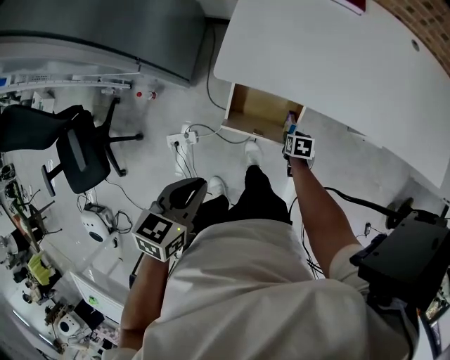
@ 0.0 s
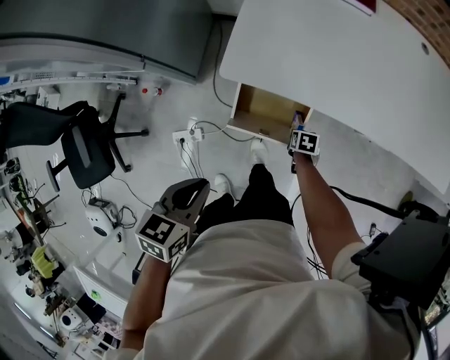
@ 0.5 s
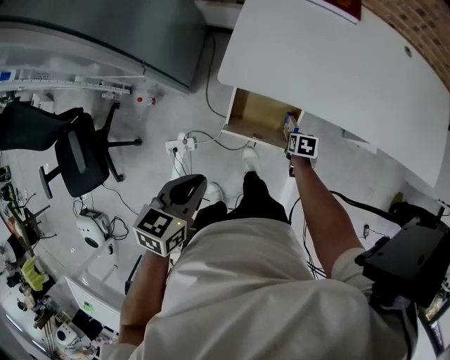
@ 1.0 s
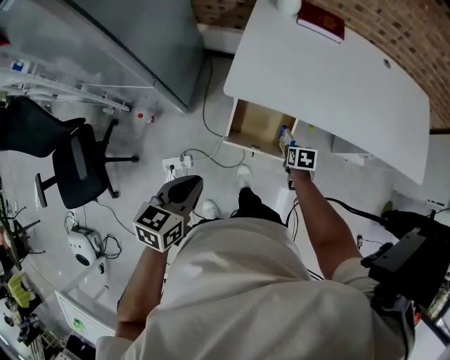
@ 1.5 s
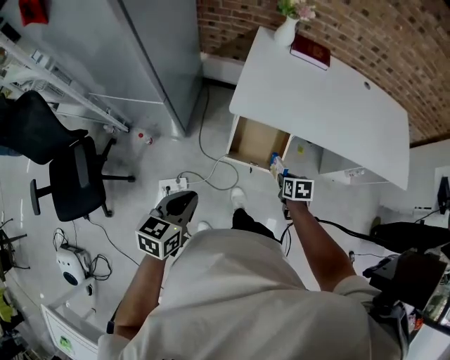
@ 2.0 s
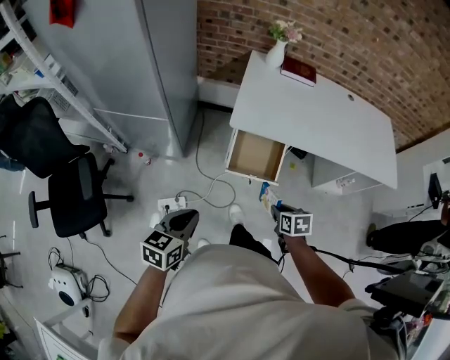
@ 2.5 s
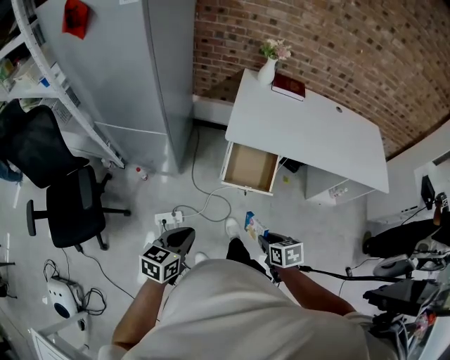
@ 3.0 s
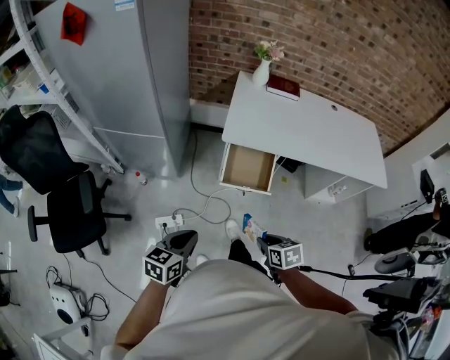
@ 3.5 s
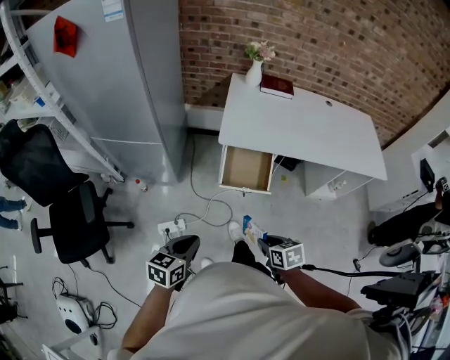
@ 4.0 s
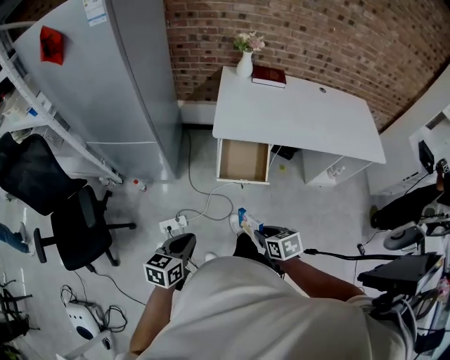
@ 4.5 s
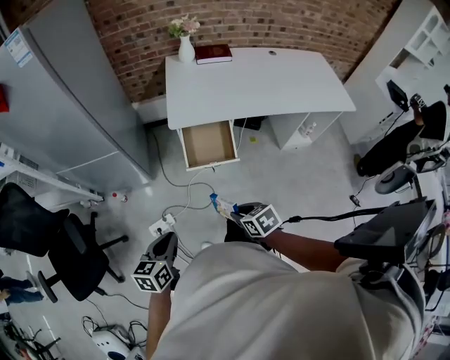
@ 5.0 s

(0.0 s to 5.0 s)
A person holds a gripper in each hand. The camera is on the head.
0.0 s - 2.5 s: The right gripper is displaced upward and backward by some 40 cm. Meanwhile the left gripper travels backward and to the left by about 25 cm.
2.5 s - 5.0 s: The left gripper moves backward, about 10 cm. The right gripper goes approximately 15 cm backward and to the left.

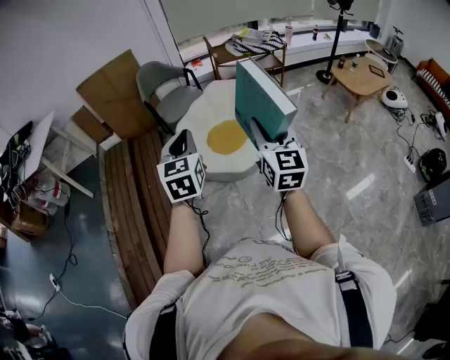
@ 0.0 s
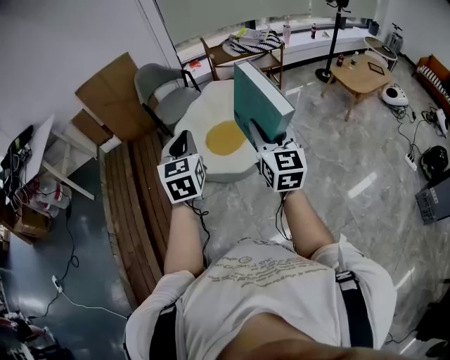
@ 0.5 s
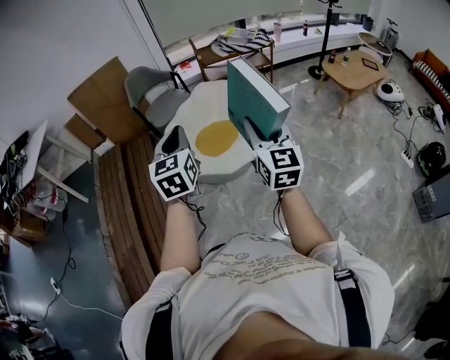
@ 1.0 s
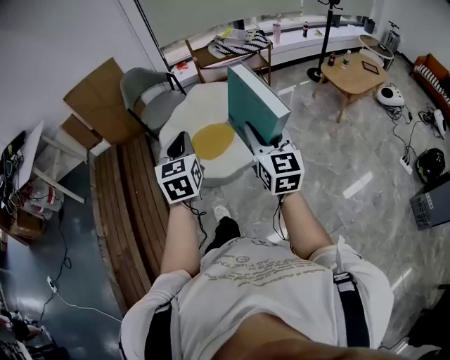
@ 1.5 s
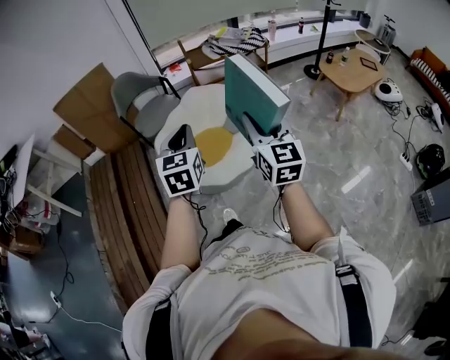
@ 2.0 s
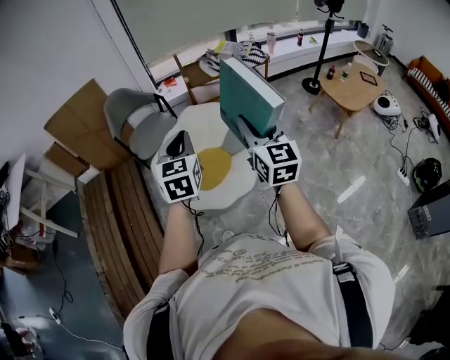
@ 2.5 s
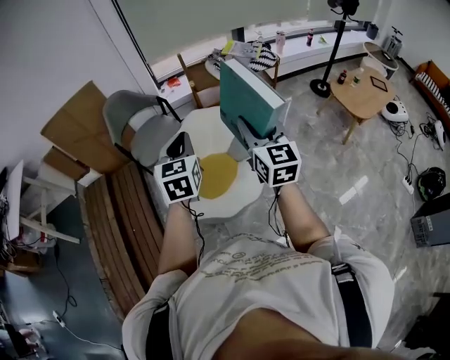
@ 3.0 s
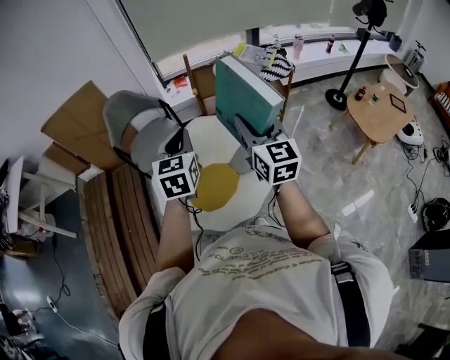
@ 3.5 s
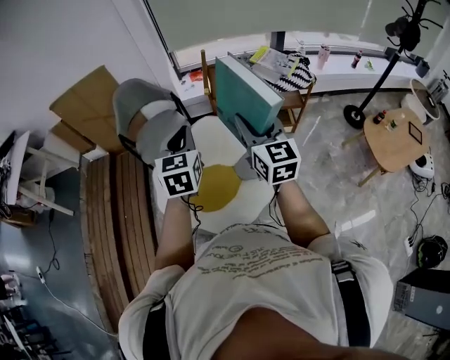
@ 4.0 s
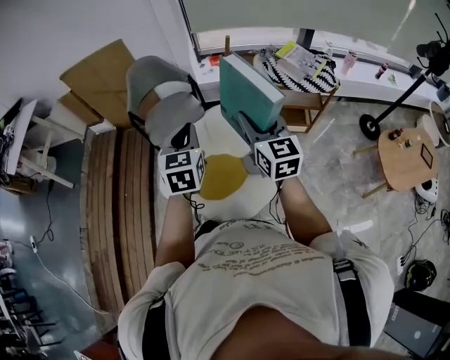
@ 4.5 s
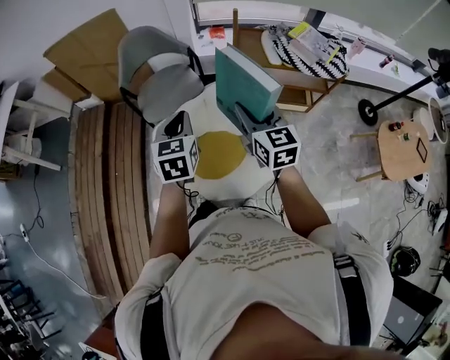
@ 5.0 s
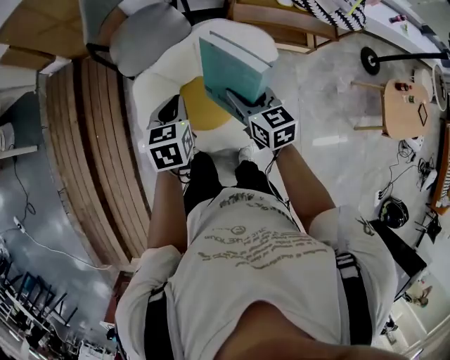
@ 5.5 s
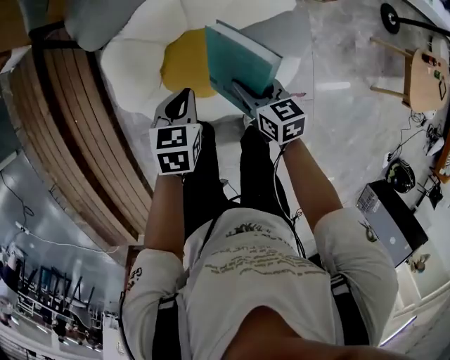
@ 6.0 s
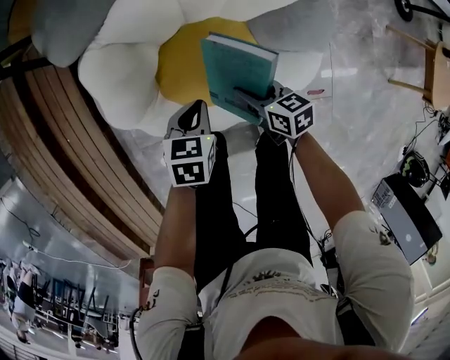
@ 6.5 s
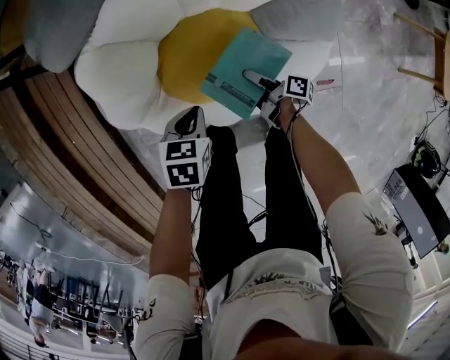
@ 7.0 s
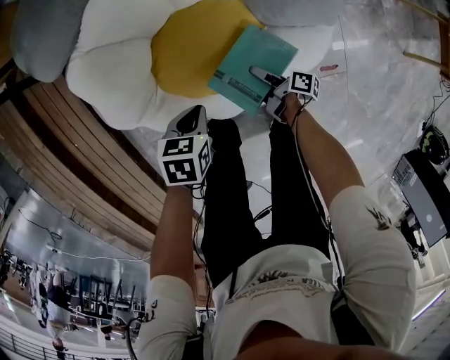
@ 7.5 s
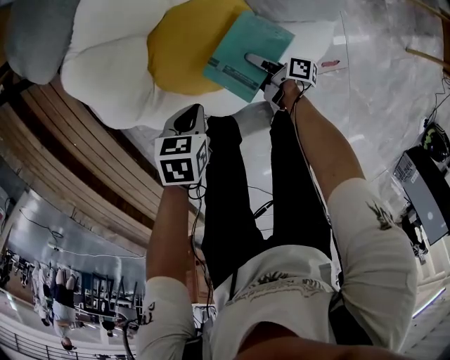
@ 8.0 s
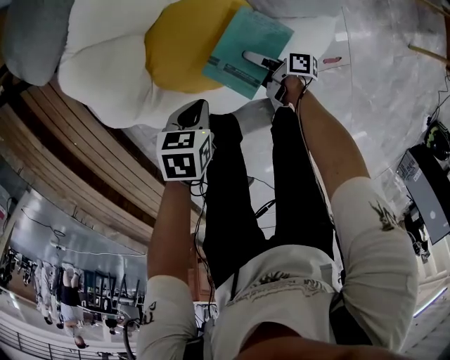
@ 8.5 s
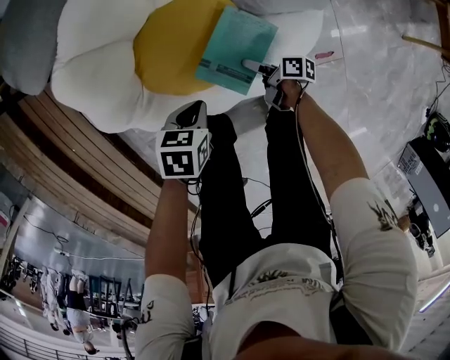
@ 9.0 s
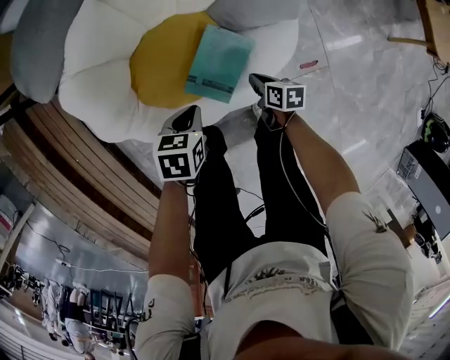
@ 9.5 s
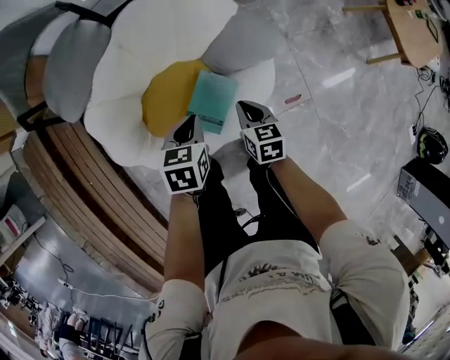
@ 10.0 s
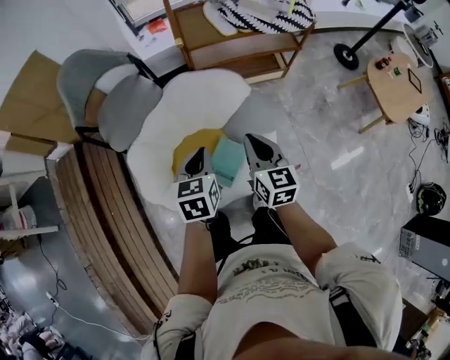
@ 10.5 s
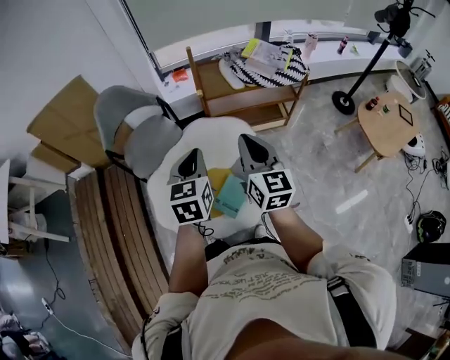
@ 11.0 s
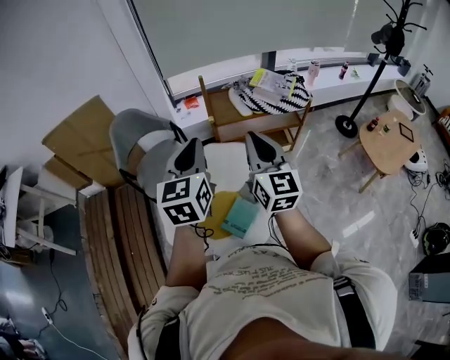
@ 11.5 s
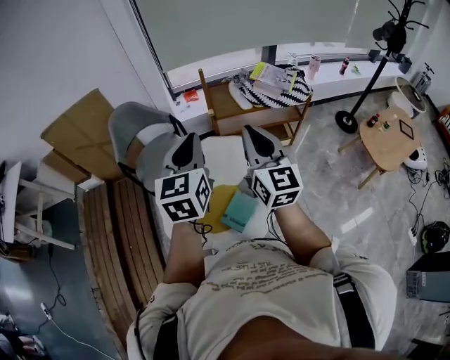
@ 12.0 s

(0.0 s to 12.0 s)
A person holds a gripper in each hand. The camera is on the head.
0.0 s - 2.0 s: The right gripper moves forward and to the right, roughly 15 cm. The left gripper moves to the right and forward, approximately 20 cm.
2.0 s - 4.0 s: The two grippers travel together, forward, about 40 cm.
4.0 s - 6.0 s: Both grippers move downward, roughly 50 cm. The right gripper angles its fingers downward, by about 40 degrees; the left gripper angles its fingers downward, by approximately 30 degrees.
6.0 s - 8.0 s: The right gripper travels downward by roughly 35 cm, and rolls clockwise, seen from behind, by approximately 70 degrees; the left gripper shifts some 20 cm downward, and changes its angle by some 20 degrees.
8.0 s - 10.0 s: The grippers both shift upward by roughly 20 cm. The right gripper rolls counterclockwise, seen from behind, by roughly 60 degrees, and closes its fingers.
10.0 s - 12.0 s: Both grippers move upward, some 60 cm. The right gripper tilts its fingers approximately 50 degrees upward; the left gripper tips its fingers upward by some 40 degrees.

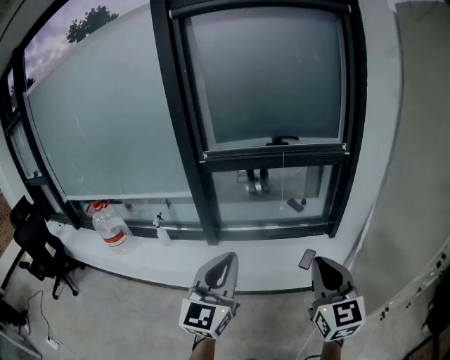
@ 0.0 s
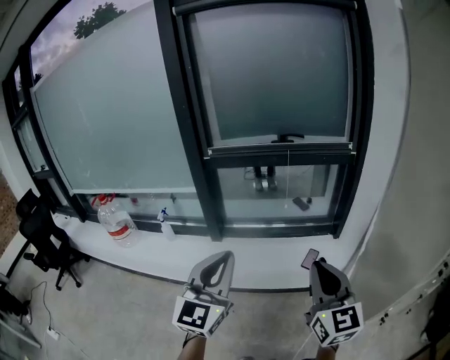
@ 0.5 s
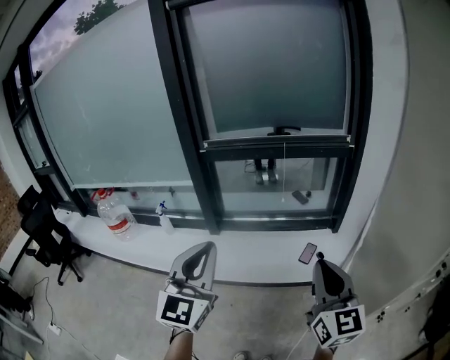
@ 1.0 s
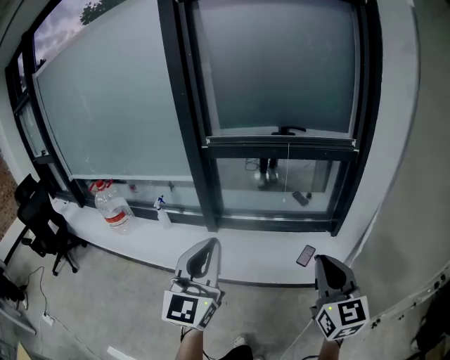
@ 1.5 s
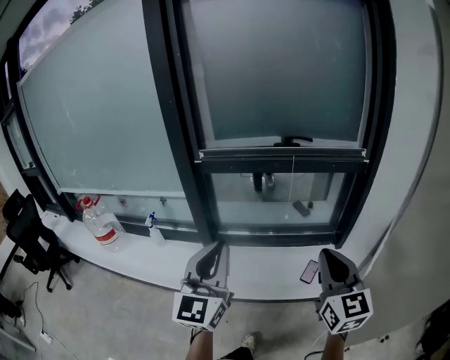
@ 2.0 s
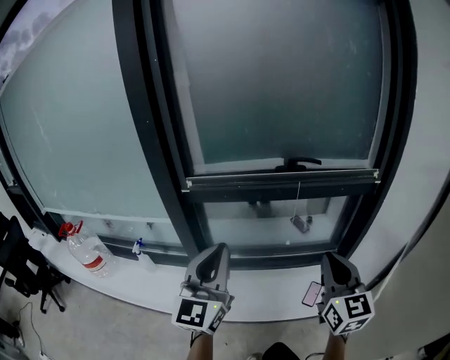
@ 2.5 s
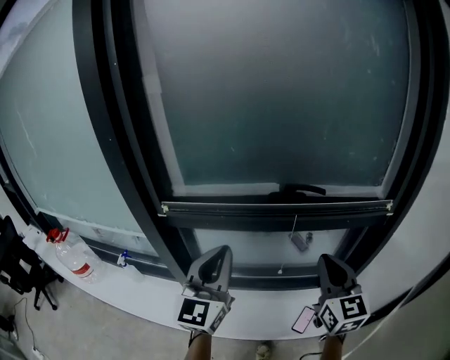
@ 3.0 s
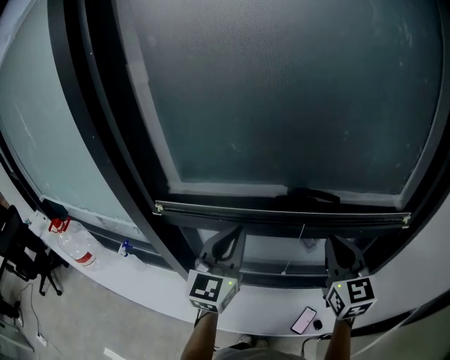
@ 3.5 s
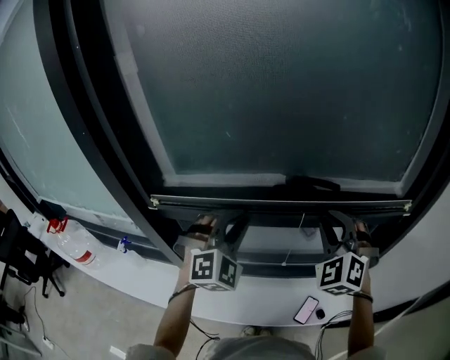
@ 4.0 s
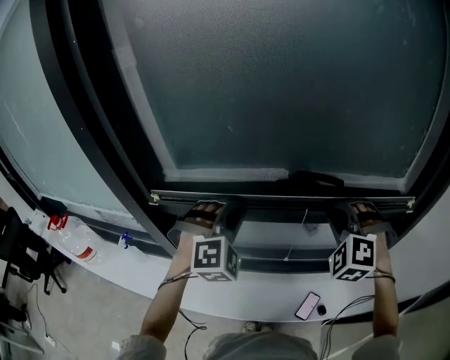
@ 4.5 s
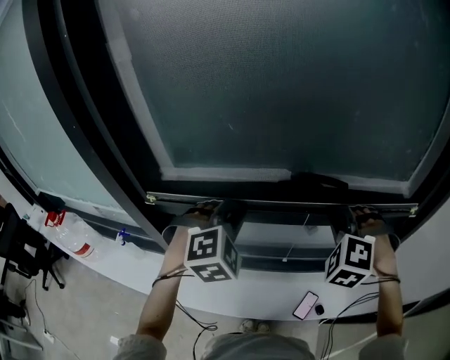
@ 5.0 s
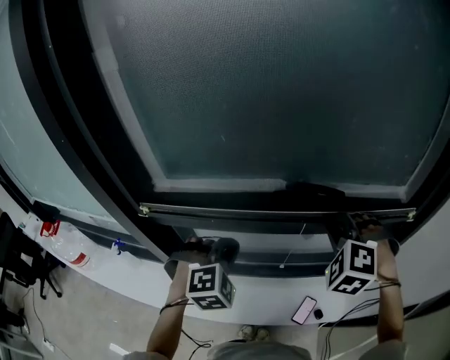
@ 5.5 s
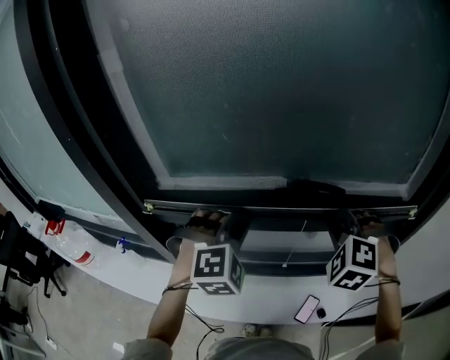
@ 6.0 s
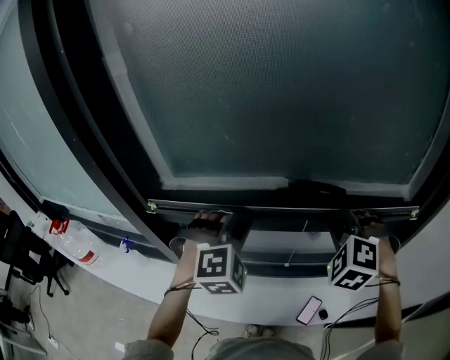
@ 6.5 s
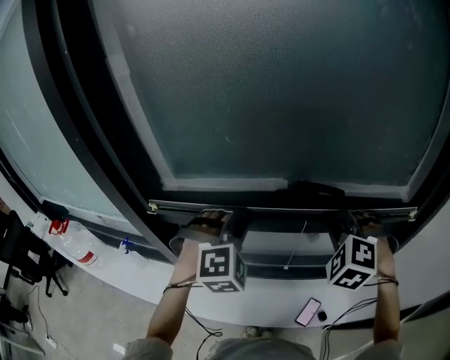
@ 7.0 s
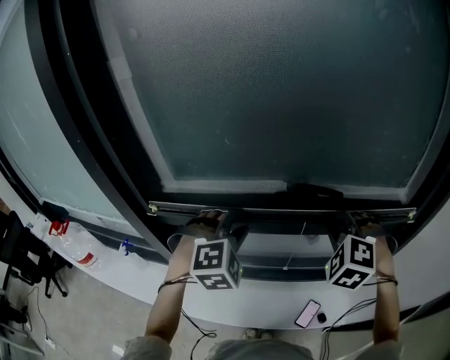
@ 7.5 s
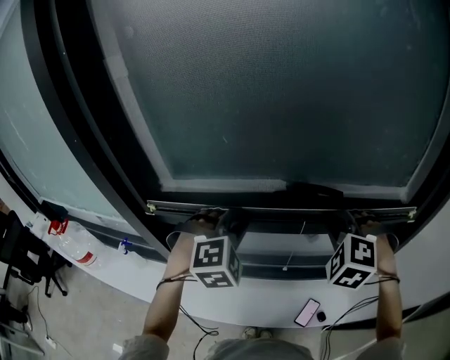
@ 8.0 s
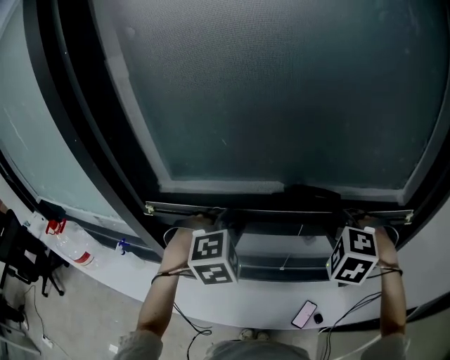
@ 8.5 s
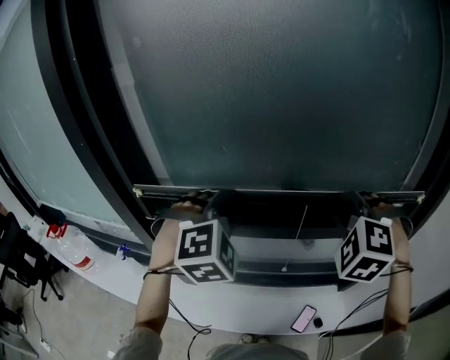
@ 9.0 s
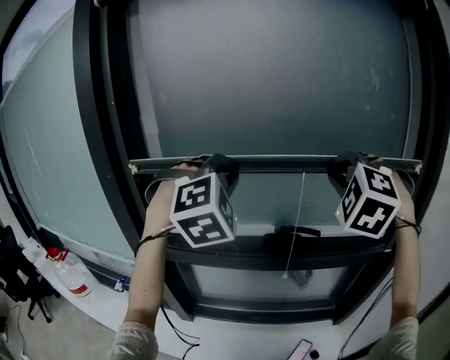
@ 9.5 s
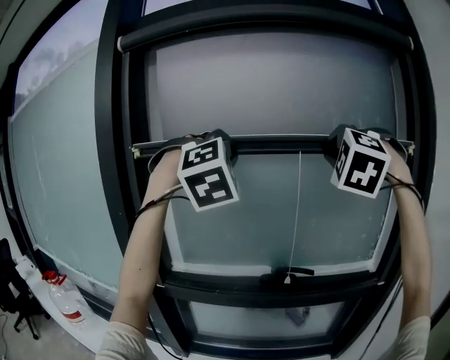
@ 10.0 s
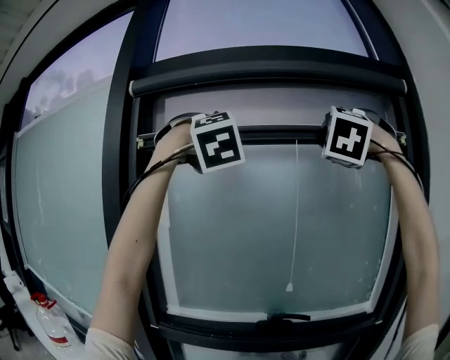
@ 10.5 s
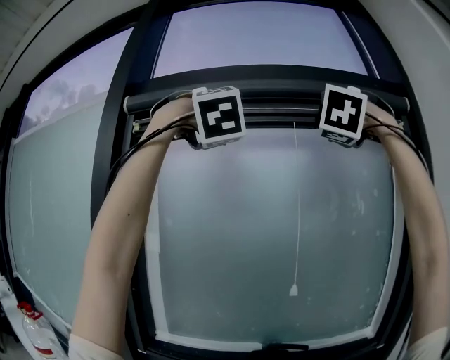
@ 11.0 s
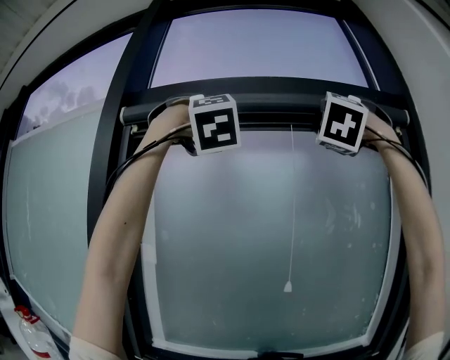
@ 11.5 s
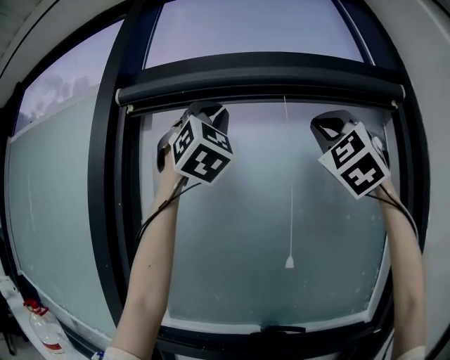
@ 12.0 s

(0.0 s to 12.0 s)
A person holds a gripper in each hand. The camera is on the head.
0.0 s - 2.0 s: The grippers both shift forward by roughly 15 cm.
2.0 s - 4.0 s: The pair of grippers is taken forward, approximately 50 cm. The right gripper rolls counterclockwise, seen from behind, by about 50 degrees; the left gripper twists some 50 degrees clockwise, seen from behind.
4.0 s - 6.0 s: The right gripper swivels roughly 30 degrees. The left gripper reaches about 10 cm downward, then returns.
6.0 s - 8.0 s: There are only small adjustments of the grippers.
8.0 s - 10.0 s: The two grippers go some 40 cm upward. The left gripper angles its fingers upward, by about 30 degrees, while the right gripper tips its fingers upward by approximately 30 degrees.
10.0 s - 12.0 s: The grippers both shift upward by some 20 cm. The left gripper tips its fingers upward by some 40 degrees, while the right gripper angles its fingers upward, by approximately 40 degrees.
